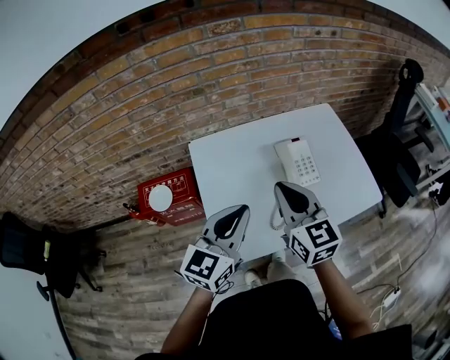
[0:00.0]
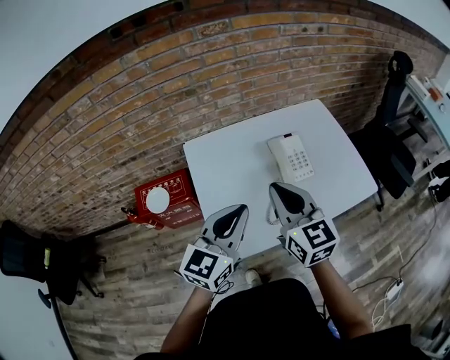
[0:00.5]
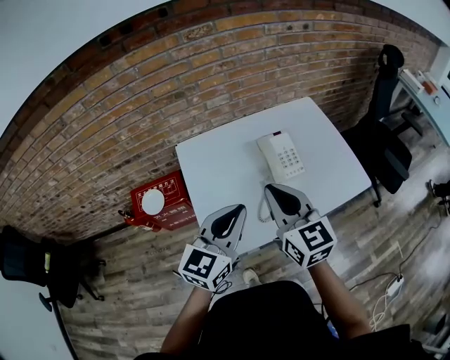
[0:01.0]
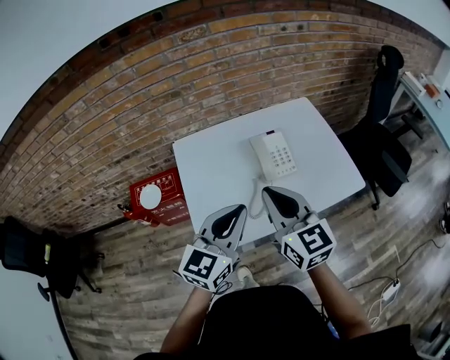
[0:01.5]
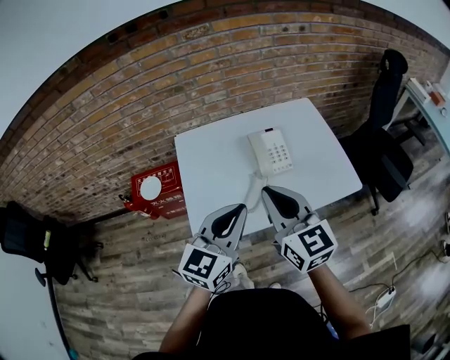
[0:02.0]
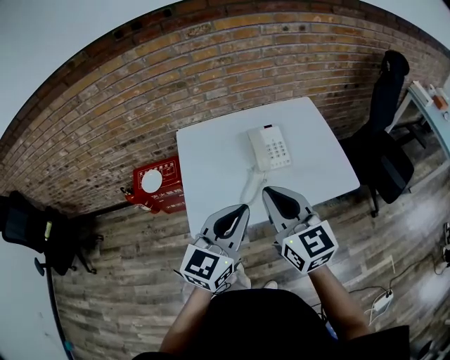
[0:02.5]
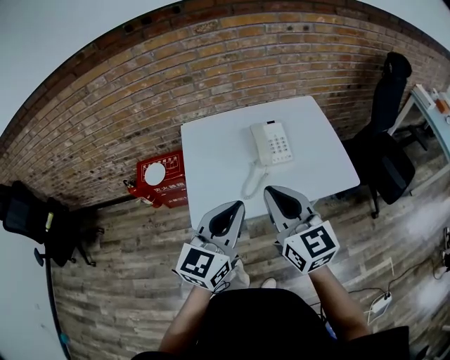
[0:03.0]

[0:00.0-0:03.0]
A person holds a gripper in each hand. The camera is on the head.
0:00.0 to 0:01.5: The left gripper is displaced to the right and backward by about 10 cm, while the right gripper heads backward and to the right, covering approximately 10 cm.
0:01.5 to 0:03.0: The grippers both shift backward by about 10 cm.

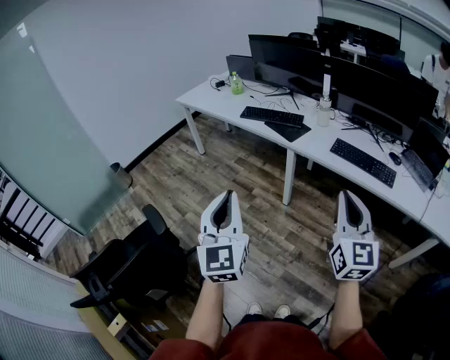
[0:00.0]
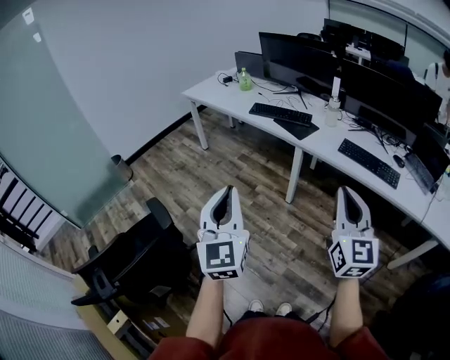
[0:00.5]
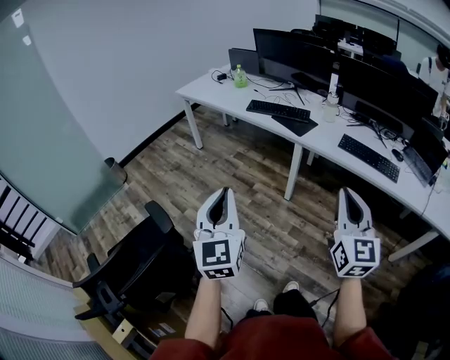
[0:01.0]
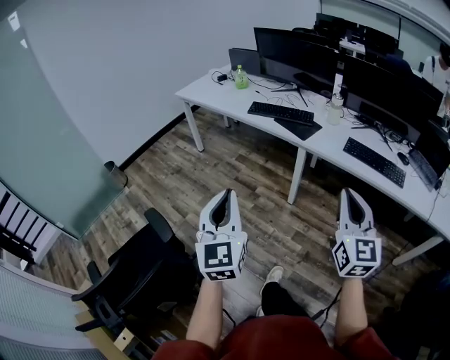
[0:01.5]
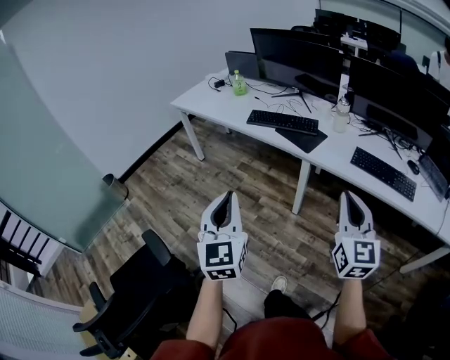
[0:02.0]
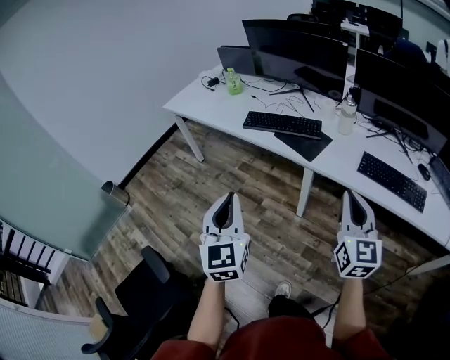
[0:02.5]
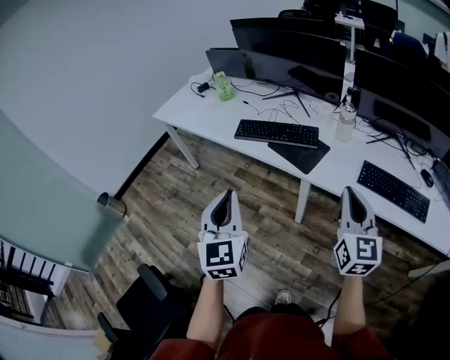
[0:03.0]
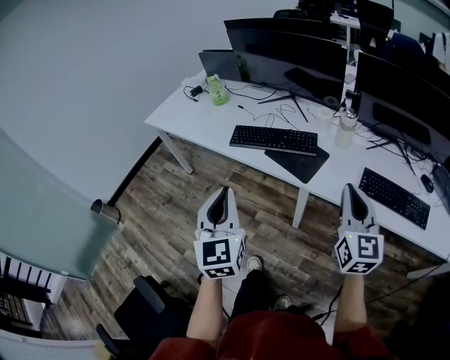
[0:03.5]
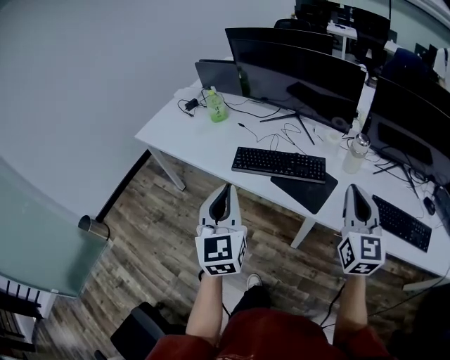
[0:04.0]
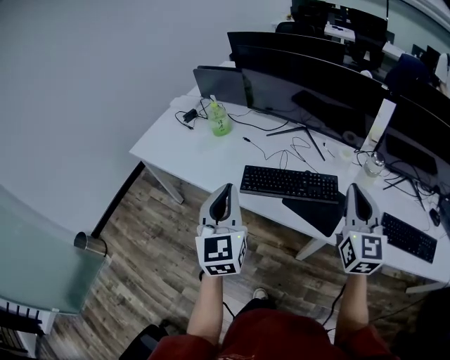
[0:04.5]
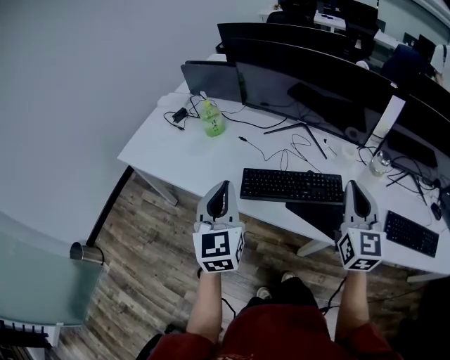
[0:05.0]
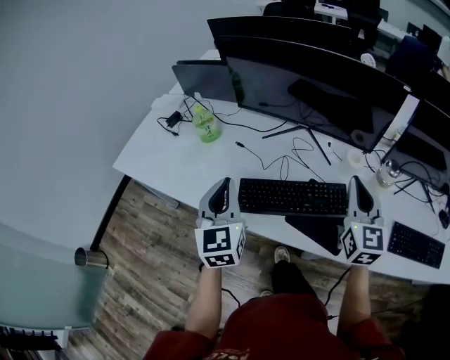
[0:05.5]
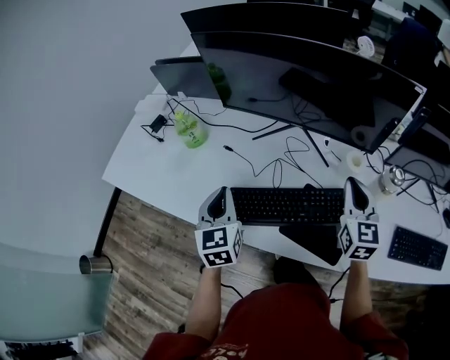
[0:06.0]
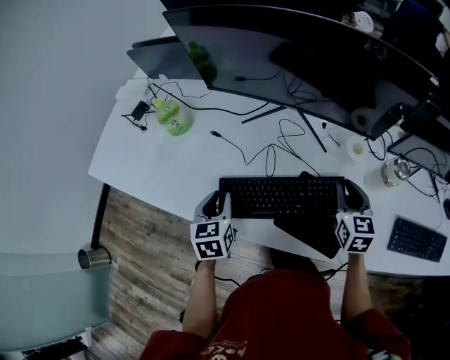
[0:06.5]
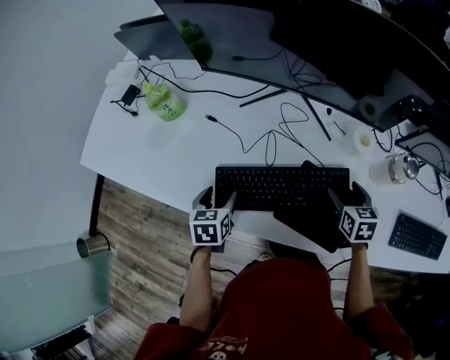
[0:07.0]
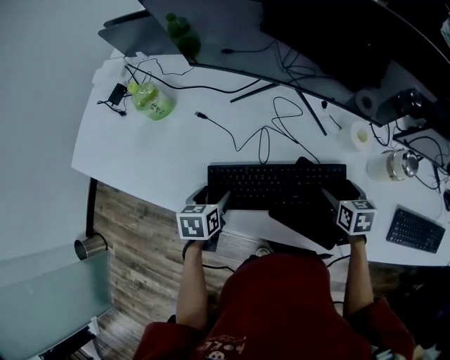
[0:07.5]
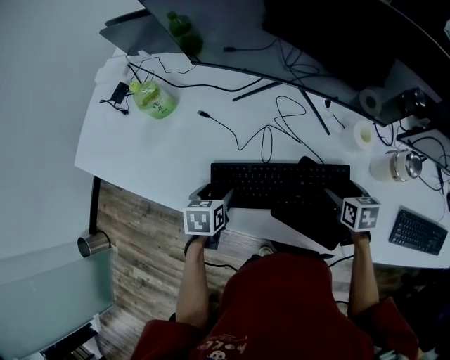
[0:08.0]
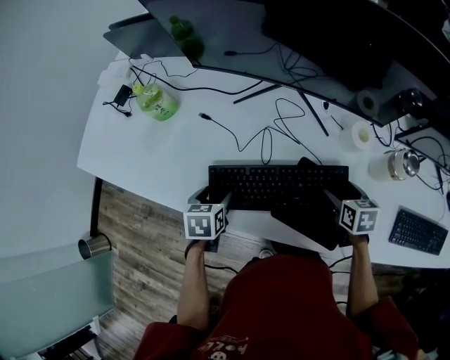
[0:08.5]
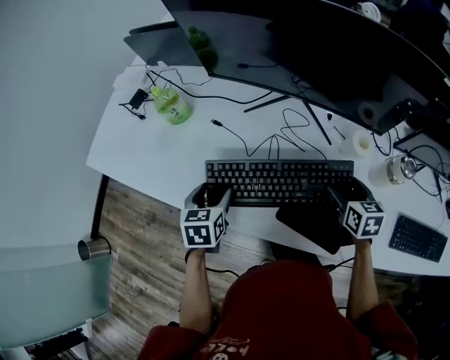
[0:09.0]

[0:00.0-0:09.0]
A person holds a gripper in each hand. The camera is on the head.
0:00.0 to 0:02.0: The grippers both shift forward and to the left by approximately 20 cm.
0:02.0 to 0:04.5: The two grippers travel together, forward, approximately 50 cm.
0:04.5 to 0:07.0: Both grippers travel together downward and forward, about 40 cm. The left gripper points its fingers some 50 degrees further downward, and opens up; the right gripper tilts its fingers roughly 50 degrees downward, and opens its fingers.
0:07.0 to 0:09.0: The left gripper travels upward by about 5 cm.

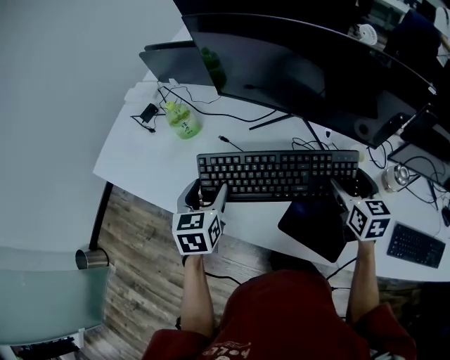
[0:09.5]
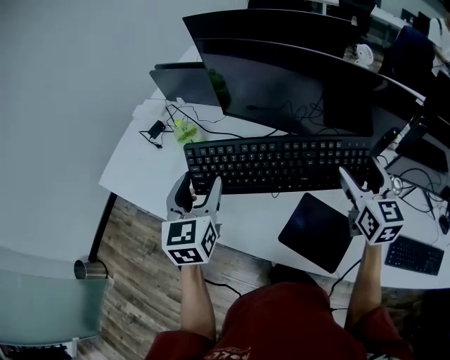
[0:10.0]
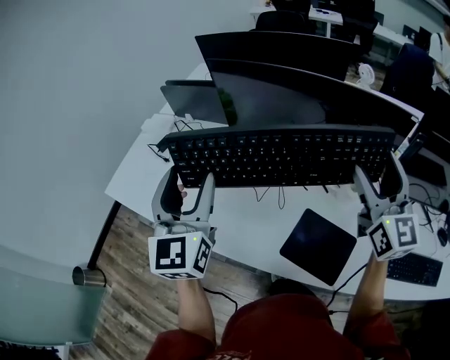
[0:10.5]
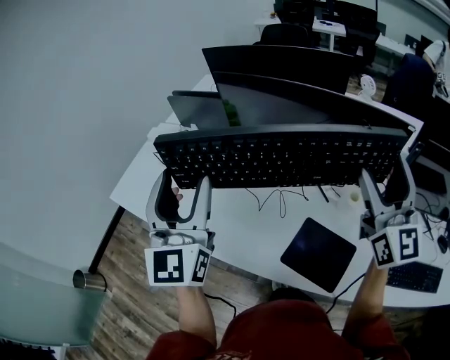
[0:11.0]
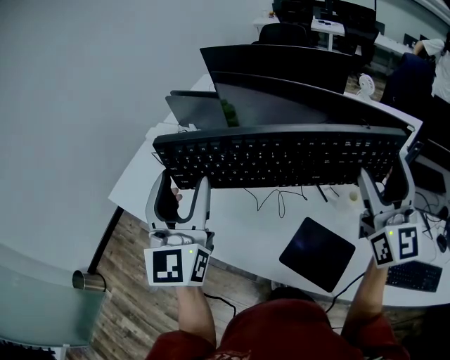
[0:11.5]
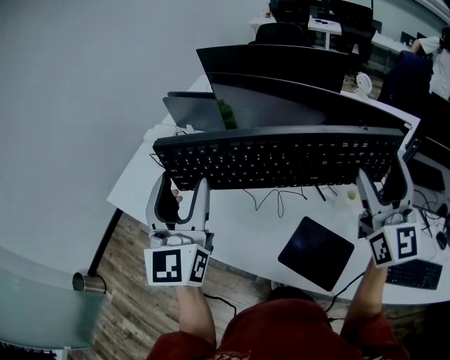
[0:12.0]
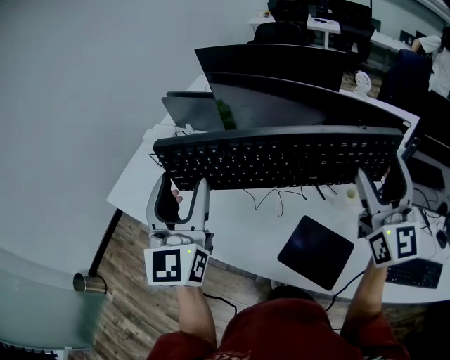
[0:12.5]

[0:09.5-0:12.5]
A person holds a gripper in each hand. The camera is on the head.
0:09.5 to 0:11.0: The grippers both shift upward by about 30 cm. The right gripper angles its fingers upward, by approximately 50 degrees. Meanwhile the left gripper tips its fingers upward by some 50 degrees.
0:11.0 to 0:12.5: Neither gripper changes place.

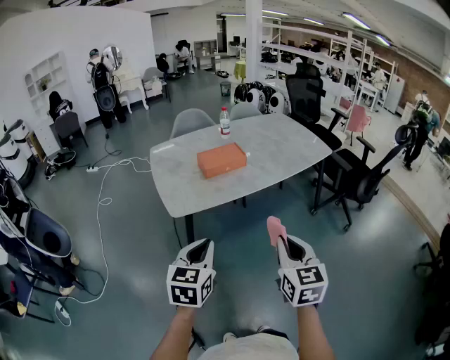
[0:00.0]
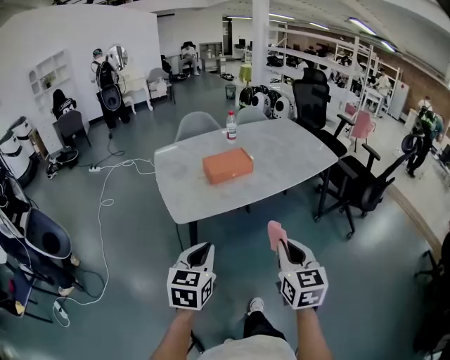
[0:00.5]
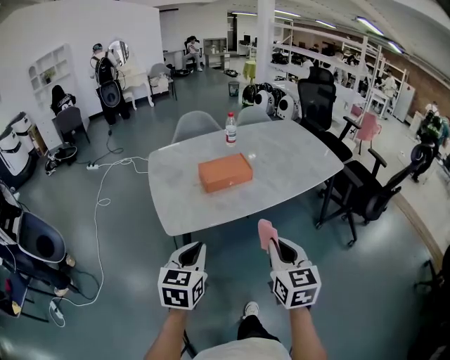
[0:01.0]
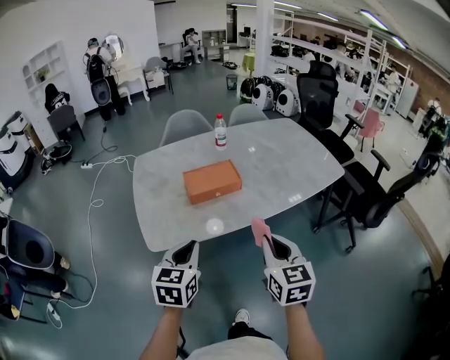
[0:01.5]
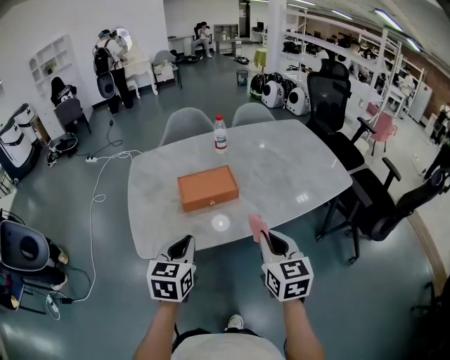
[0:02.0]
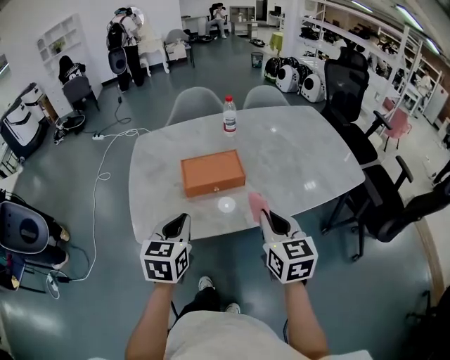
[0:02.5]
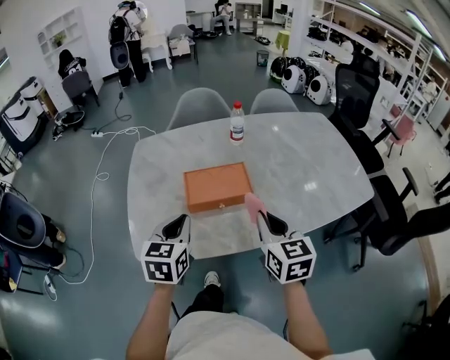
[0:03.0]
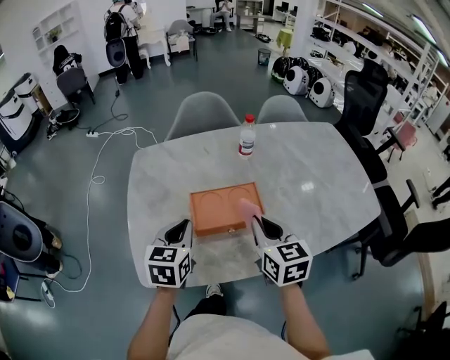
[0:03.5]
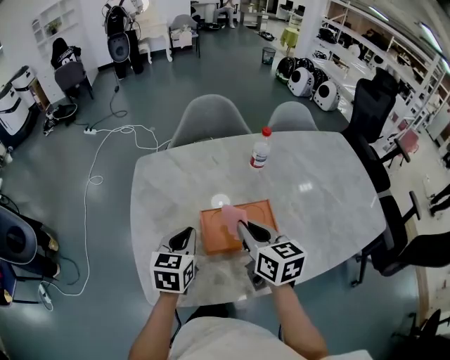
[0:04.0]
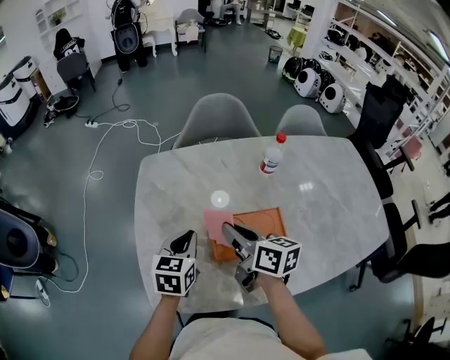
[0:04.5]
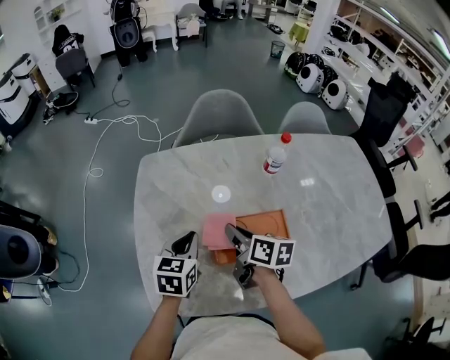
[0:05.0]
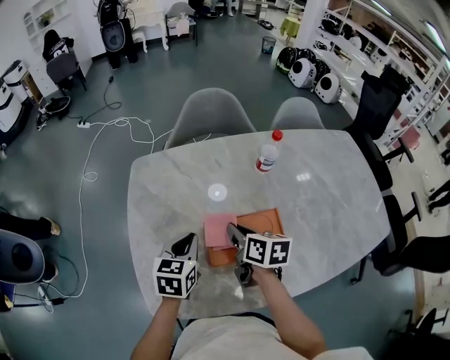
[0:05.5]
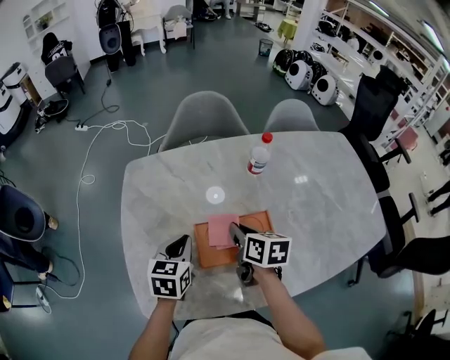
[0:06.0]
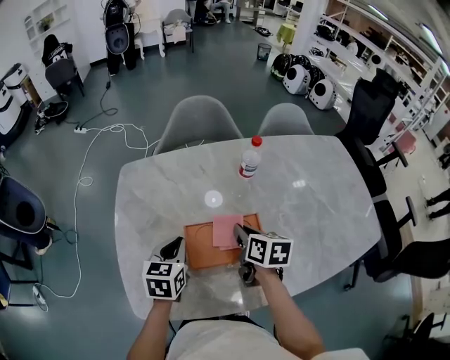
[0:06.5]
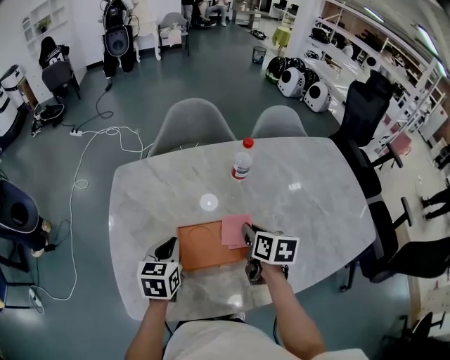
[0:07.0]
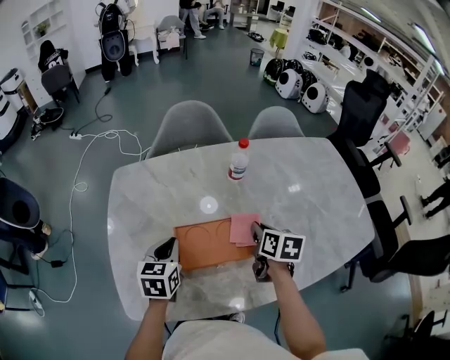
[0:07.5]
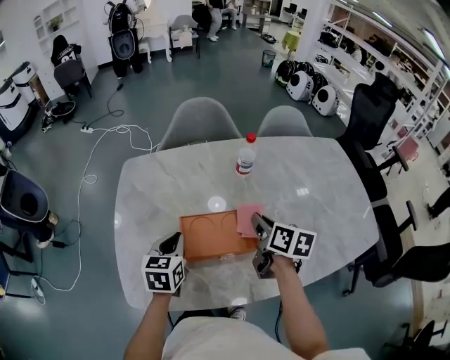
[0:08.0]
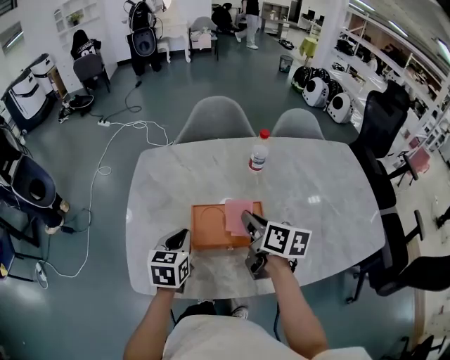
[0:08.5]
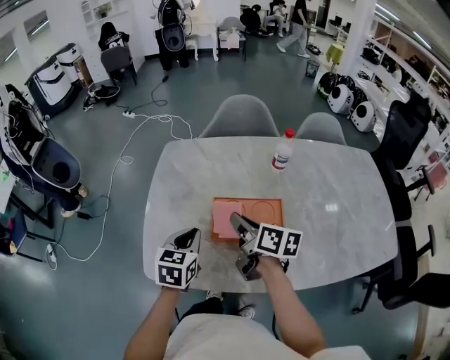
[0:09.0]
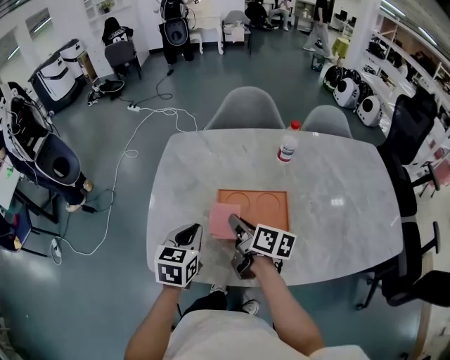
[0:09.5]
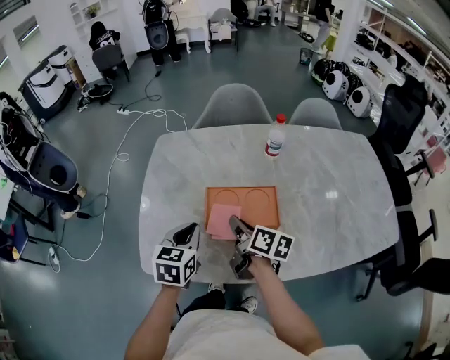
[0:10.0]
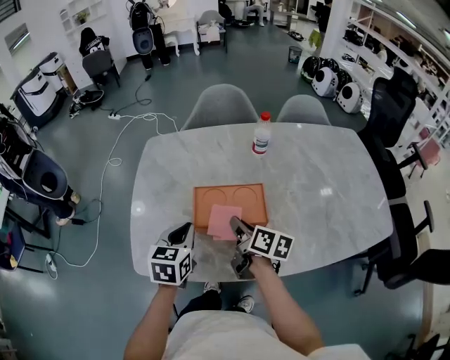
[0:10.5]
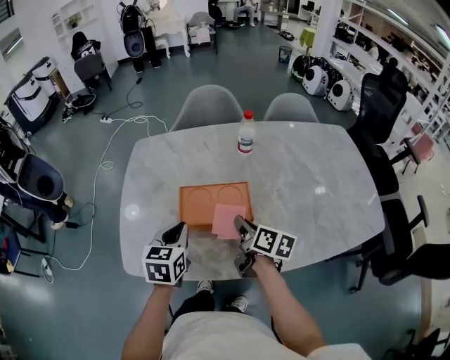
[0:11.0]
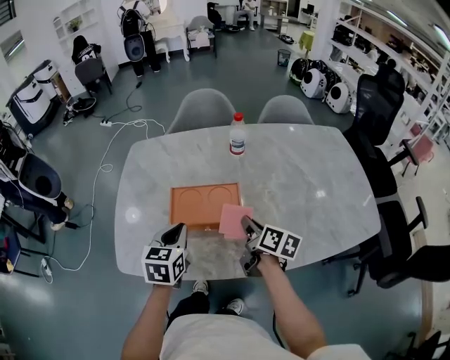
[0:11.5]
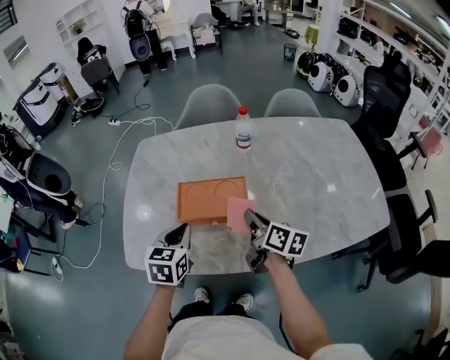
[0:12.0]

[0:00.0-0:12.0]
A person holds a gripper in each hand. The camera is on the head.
0:00.0 to 0:02.0: The two grippers go roughly 30 cm forward.
0:02.0 to 0:04.0: The right gripper heads forward and to the left, covering about 35 cm, and turns by roughly 20 degrees. Meanwhile the left gripper is displaced forward by some 30 cm.
0:04.0 to 0:06.0: The right gripper shifts about 10 cm downward and forward, and changes its angle by about 20 degrees. Meanwhile the left gripper moves about 5 cm.
0:06.0 to 0:08.0: The right gripper is displaced to the right by approximately 10 cm.
0:08.0 to 0:10.0: The right gripper goes about 15 cm to the left, and changes its angle by about 20 degrees, while the left gripper travels backward by about 10 cm.
0:10.0 to 0:12.0: The left gripper moves to the right, about 5 cm. Meanwhile the right gripper is displaced to the right by some 15 cm.
